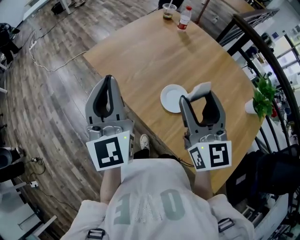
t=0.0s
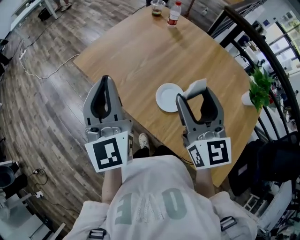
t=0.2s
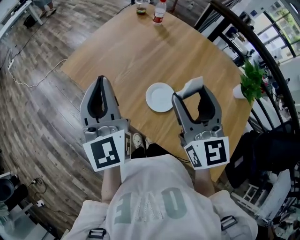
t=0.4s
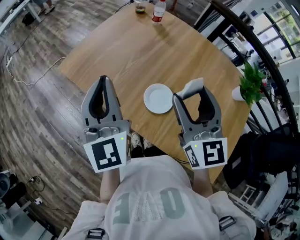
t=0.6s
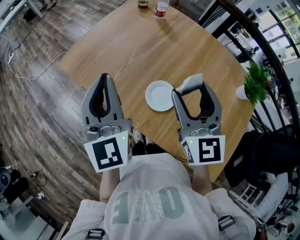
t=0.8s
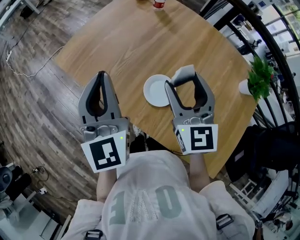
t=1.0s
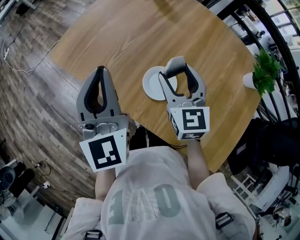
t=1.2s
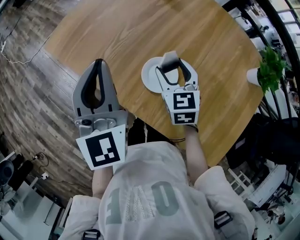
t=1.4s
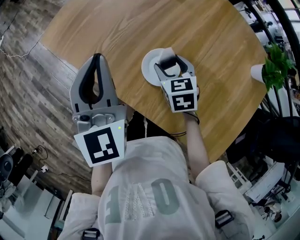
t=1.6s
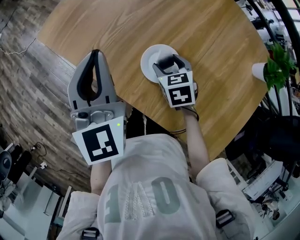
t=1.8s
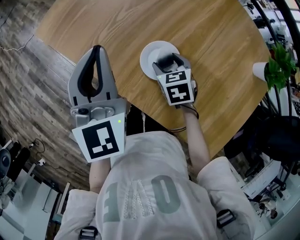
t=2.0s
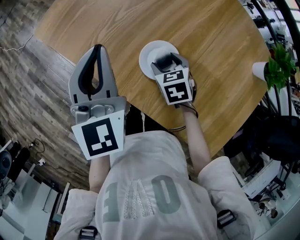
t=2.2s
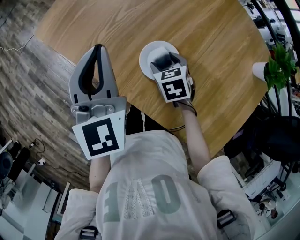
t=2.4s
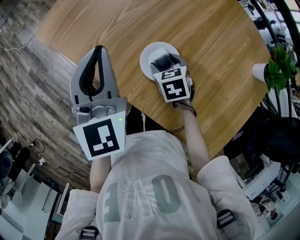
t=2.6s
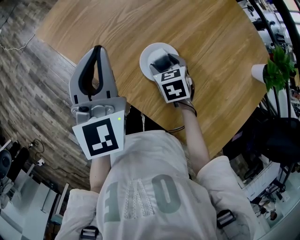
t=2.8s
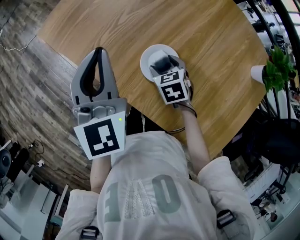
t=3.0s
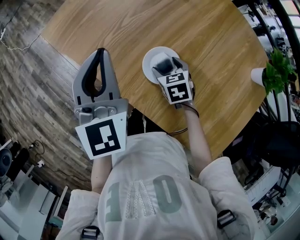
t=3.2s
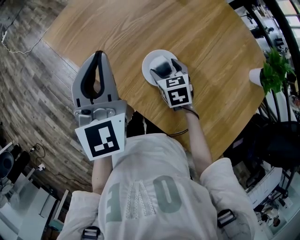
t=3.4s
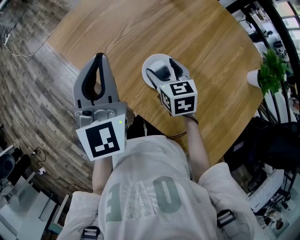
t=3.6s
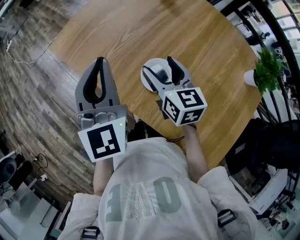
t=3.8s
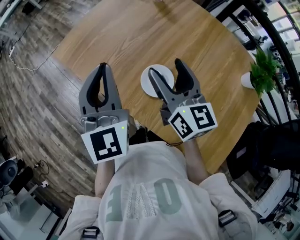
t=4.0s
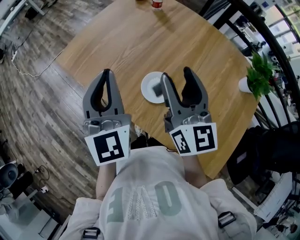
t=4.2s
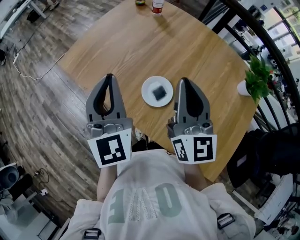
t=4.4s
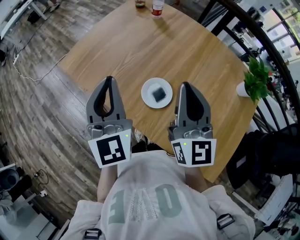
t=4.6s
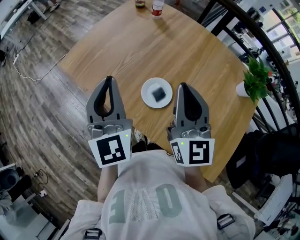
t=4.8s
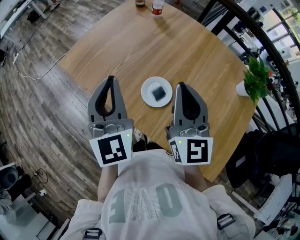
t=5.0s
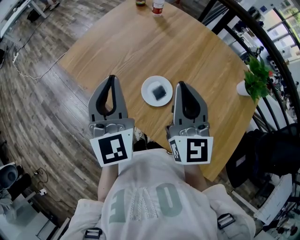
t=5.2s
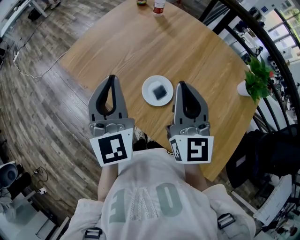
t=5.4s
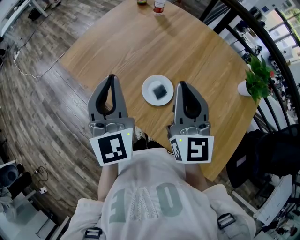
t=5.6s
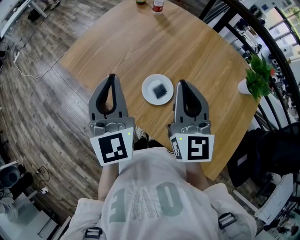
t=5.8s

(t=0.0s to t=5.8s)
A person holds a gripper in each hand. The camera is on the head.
t=0.0s - t=1.4s: The right gripper heads downward and forward, covering approximately 25 cm, and tilts its fingers about 30 degrees downward, while the left gripper travels to the right, forward and downward by about 15 cm.
t=1.4s - t=2.8s: The right gripper heads downward, covering roughly 10 cm, and changes its angle by roughly 30 degrees.
t=2.8s - t=4.4s: The left gripper is displaced upward and backward by approximately 10 cm. Meanwhile the right gripper travels upward by roughly 35 cm, tilts its fingers about 60 degrees upward, and closes.
t=4.4s - t=5.8s: There are only small adjustments of the grippers.

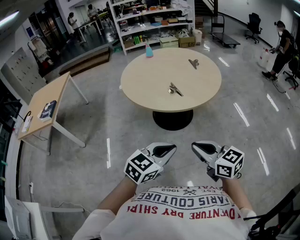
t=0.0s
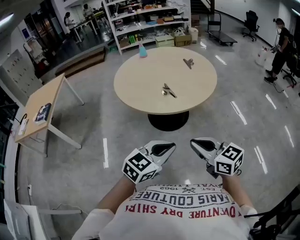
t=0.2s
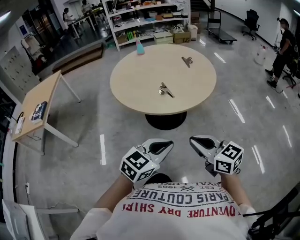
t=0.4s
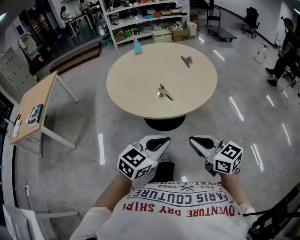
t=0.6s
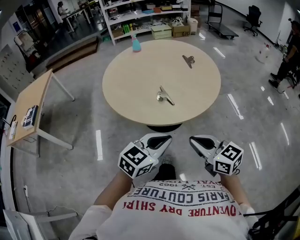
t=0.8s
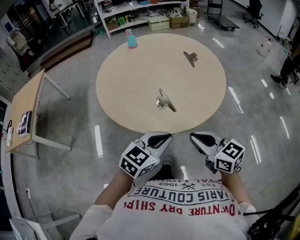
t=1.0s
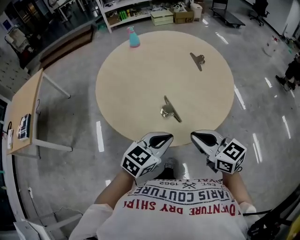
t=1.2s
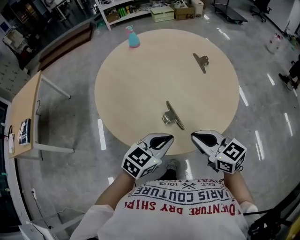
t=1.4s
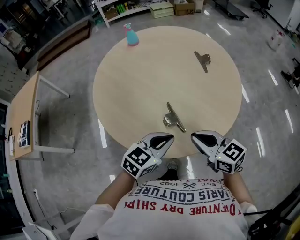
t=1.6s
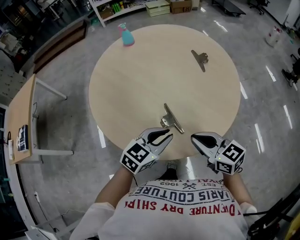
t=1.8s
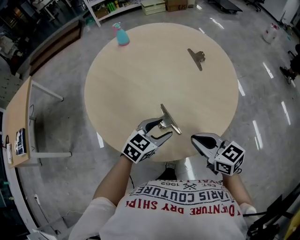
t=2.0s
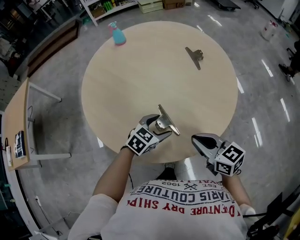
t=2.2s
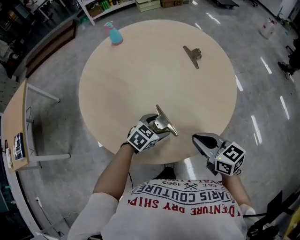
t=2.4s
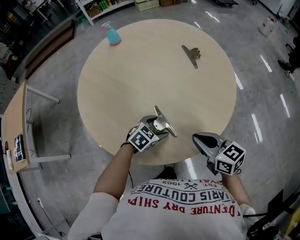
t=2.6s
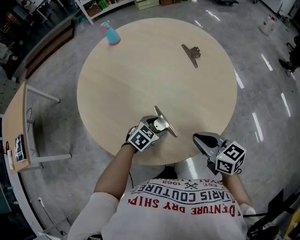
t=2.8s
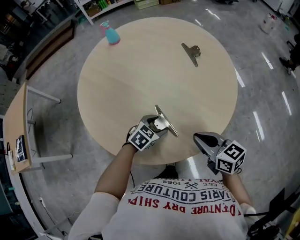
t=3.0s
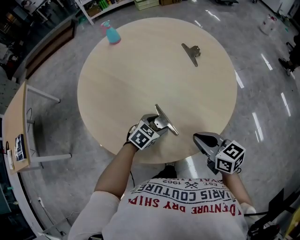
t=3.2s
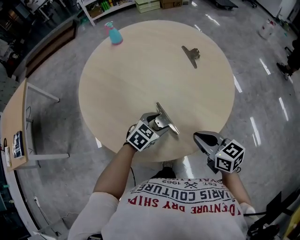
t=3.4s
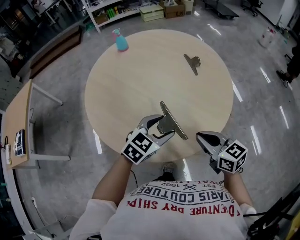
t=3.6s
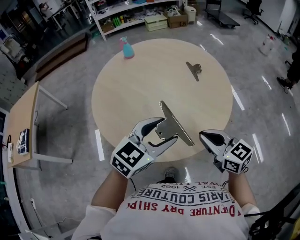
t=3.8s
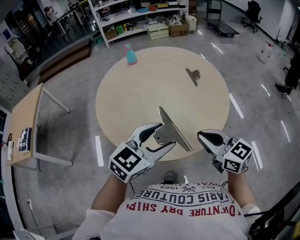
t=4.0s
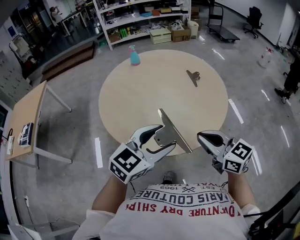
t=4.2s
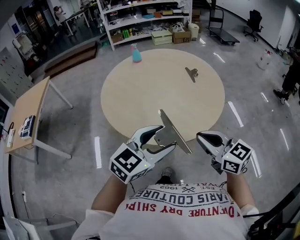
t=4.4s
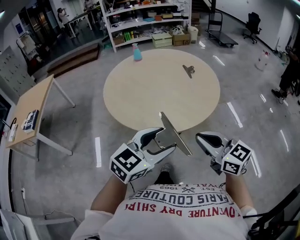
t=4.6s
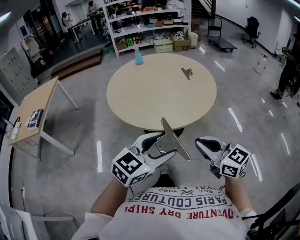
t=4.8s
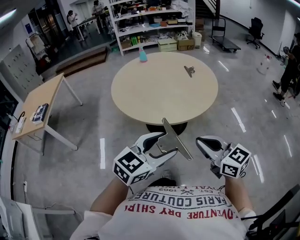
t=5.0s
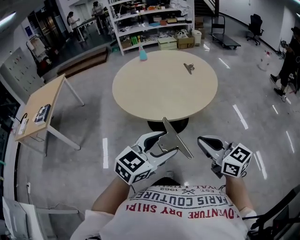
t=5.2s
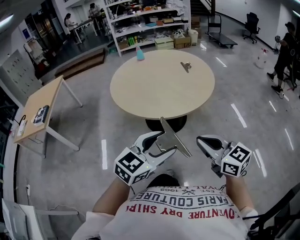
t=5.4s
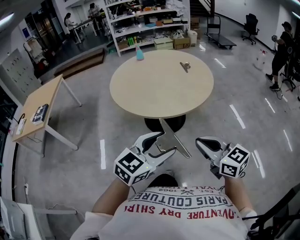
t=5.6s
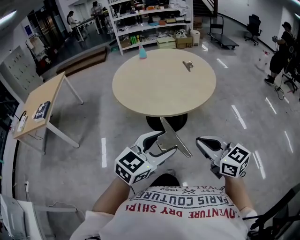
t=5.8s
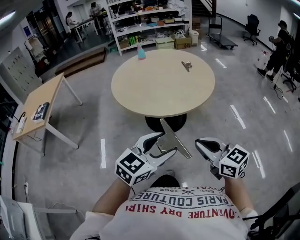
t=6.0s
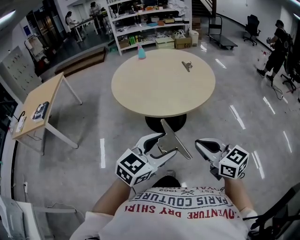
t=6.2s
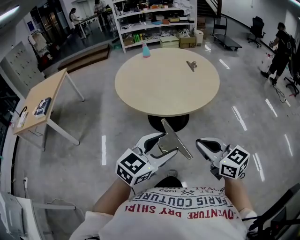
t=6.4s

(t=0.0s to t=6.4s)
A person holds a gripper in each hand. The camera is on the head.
t=0.0s - t=1.6s: Both grippers are carried forward, some 50 cm.
t=1.6s - t=3.2s: The left gripper is displaced downward and forward by roughly 20 cm, swivels some 20 degrees, and opens. The right gripper travels downward and to the right by roughly 10 cm.
t=3.2s - t=4.8s: The two grippers go about 40 cm backward and upward. The right gripper swivels approximately 30 degrees; the left gripper angles its fingers upward, by approximately 30 degrees.
t=4.8s - t=6.4s: Both grippers move backward, about 10 cm.

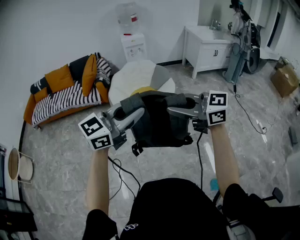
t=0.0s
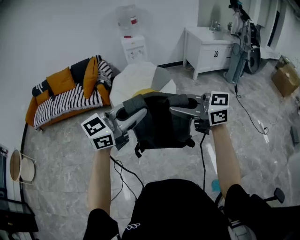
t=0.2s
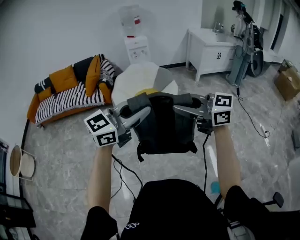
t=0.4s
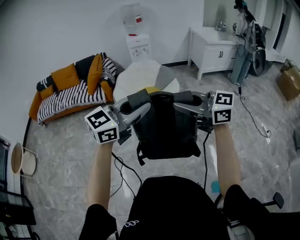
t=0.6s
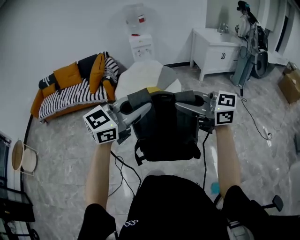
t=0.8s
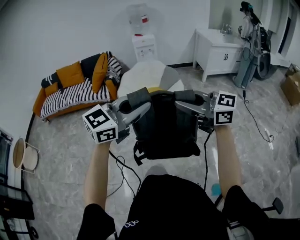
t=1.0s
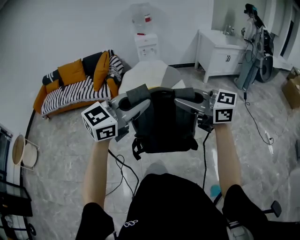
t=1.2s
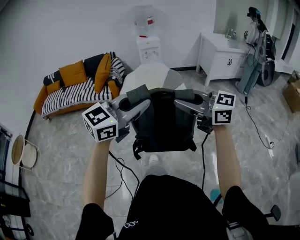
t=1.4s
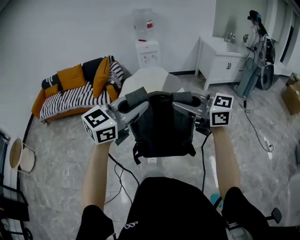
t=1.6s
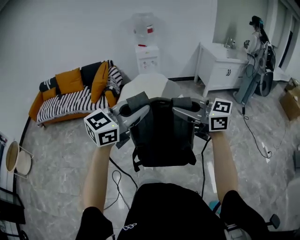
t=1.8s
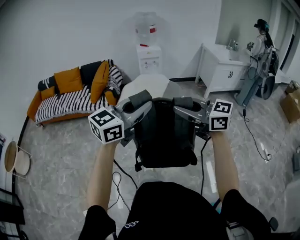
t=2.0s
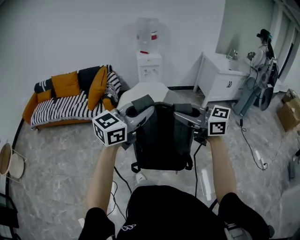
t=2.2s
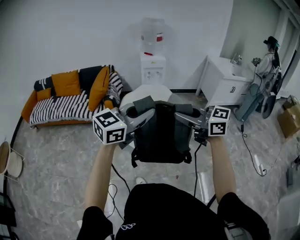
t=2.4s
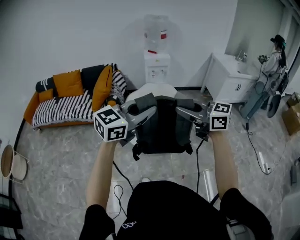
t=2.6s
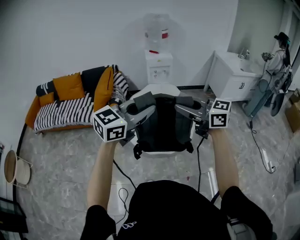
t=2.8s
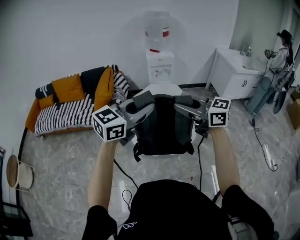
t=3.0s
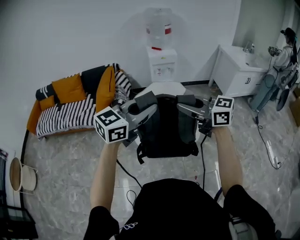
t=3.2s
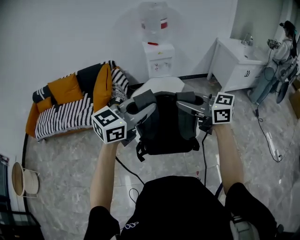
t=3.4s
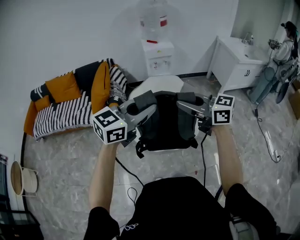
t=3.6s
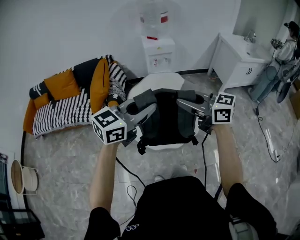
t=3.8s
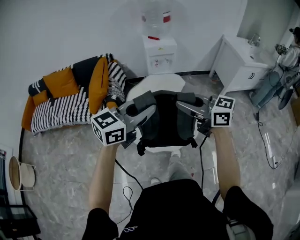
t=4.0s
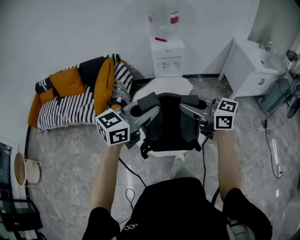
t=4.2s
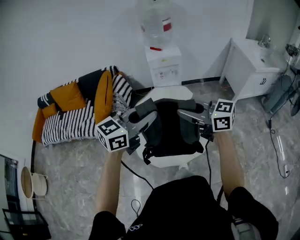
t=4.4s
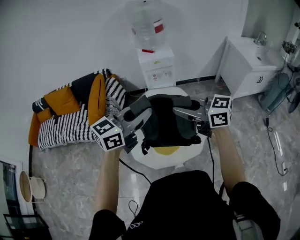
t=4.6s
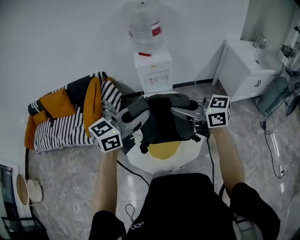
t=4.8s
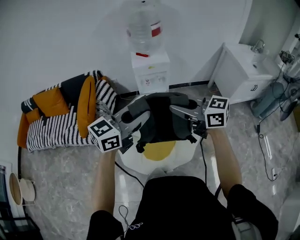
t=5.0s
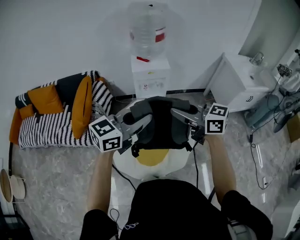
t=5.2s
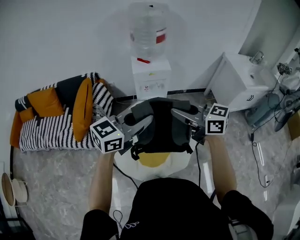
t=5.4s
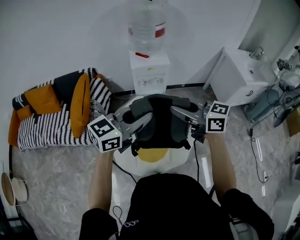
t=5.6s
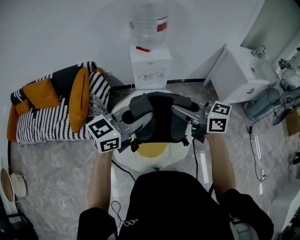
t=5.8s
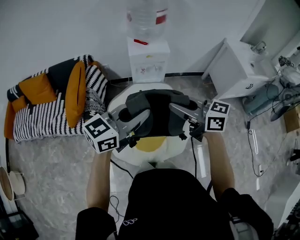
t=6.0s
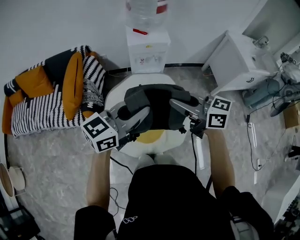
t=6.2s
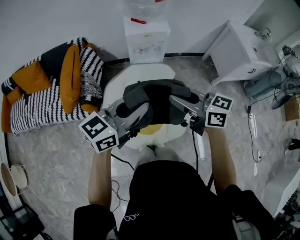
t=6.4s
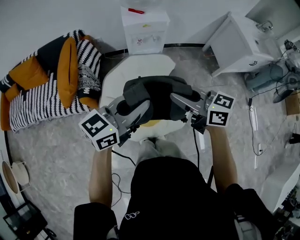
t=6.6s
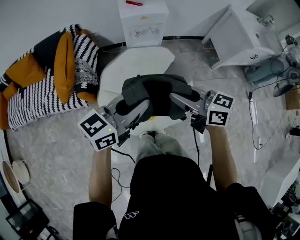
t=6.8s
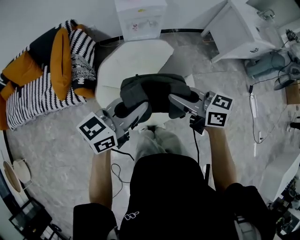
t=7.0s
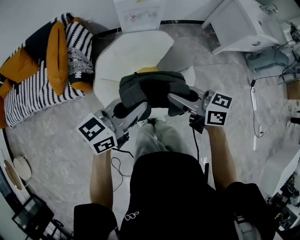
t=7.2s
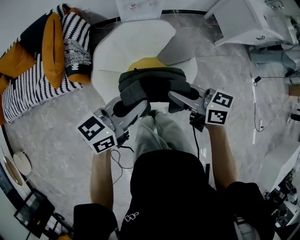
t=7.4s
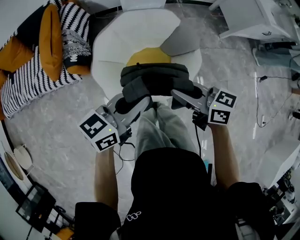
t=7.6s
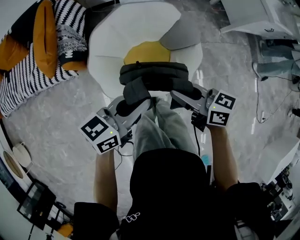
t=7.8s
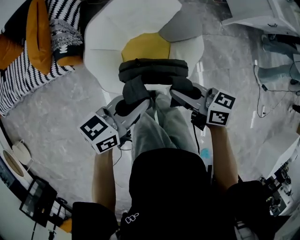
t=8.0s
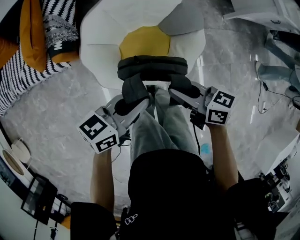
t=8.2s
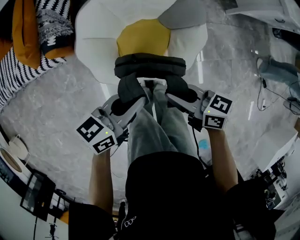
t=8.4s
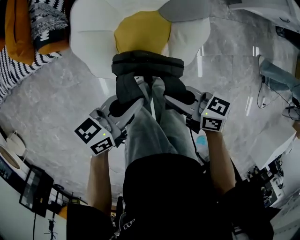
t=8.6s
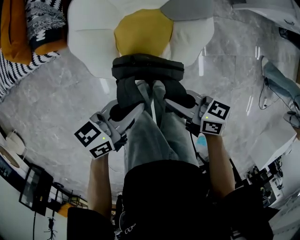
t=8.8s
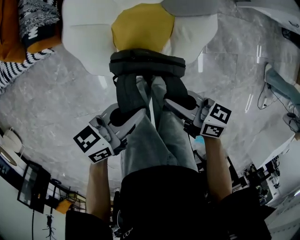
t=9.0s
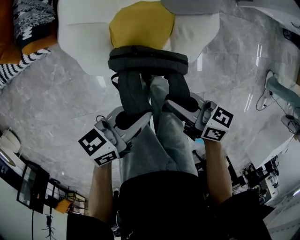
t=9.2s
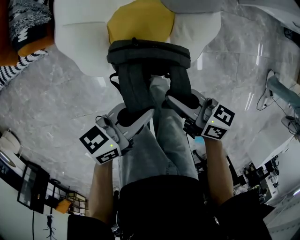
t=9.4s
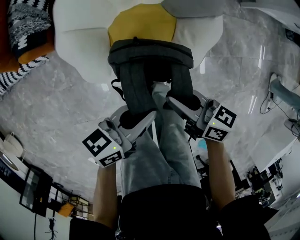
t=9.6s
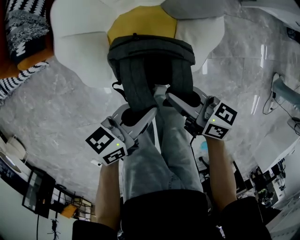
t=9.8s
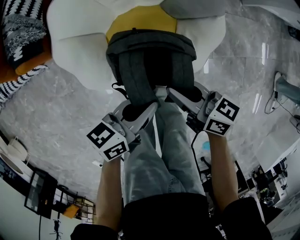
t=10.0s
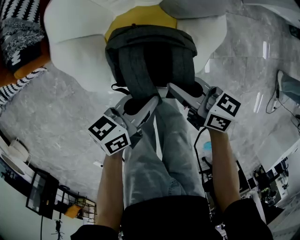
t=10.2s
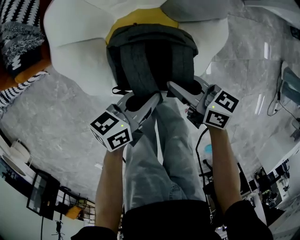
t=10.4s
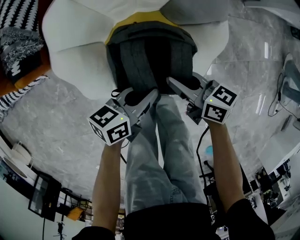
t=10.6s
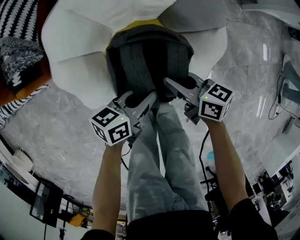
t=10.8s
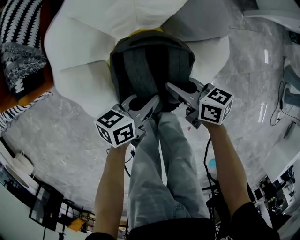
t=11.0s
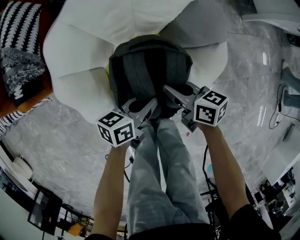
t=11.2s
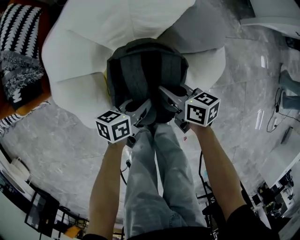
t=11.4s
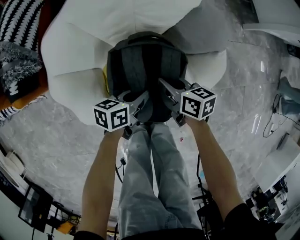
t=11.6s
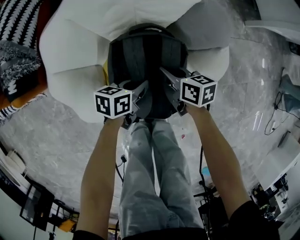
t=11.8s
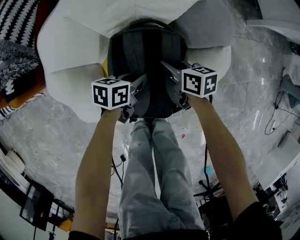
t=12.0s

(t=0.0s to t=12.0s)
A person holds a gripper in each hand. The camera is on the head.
t=0.0s - t=1.6s: The left gripper changes place by roughly 10 cm, while the right gripper shifts by some 10 cm.
t=1.6s - t=3.0s: The right gripper ends up approximately 35 cm from where it was. Meanwhile the left gripper changes place by approximately 35 cm.
t=3.0s - t=4.4s: Both grippers travel together forward, some 25 cm.
t=4.4s - t=6.0s: The left gripper ends up some 15 cm from where it was, while the right gripper shifts by about 20 cm.
t=6.0s - t=7.6s: Both grippers move downward, roughly 20 cm. The left gripper rotates approximately 20 degrees. The right gripper turns by some 20 degrees.
t=7.6s - t=9.0s: Both grippers travel together downward, roughly 20 cm. The left gripper turns by about 20 degrees.
t=9.0s - t=10.4s: The grippers both shift downward by about 15 cm.
t=10.4s - t=12.0s: The grippers both shift downward and forward by roughly 25 cm.
